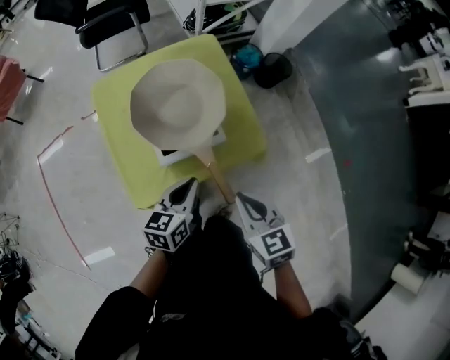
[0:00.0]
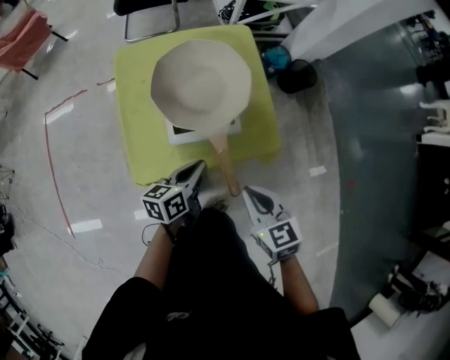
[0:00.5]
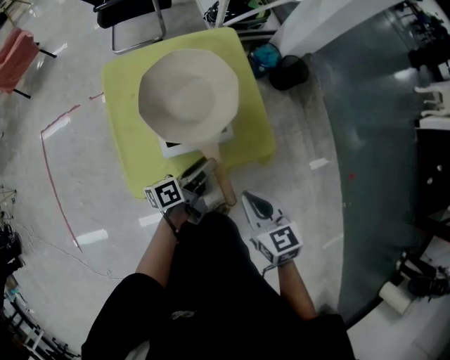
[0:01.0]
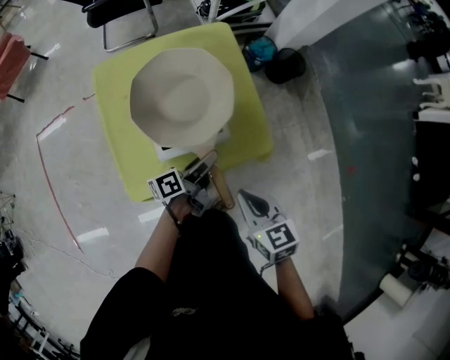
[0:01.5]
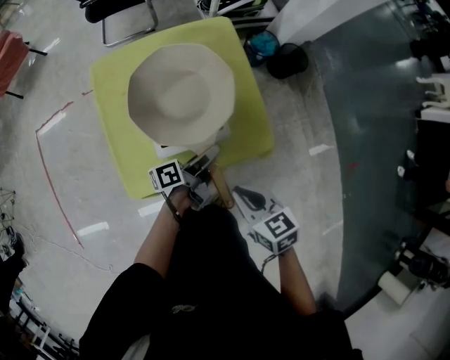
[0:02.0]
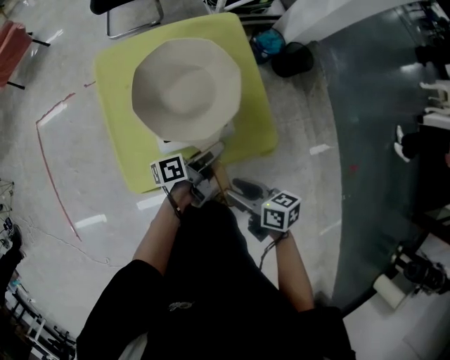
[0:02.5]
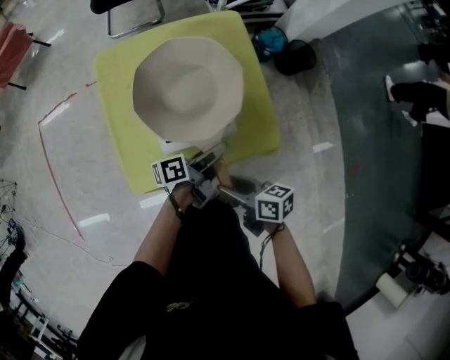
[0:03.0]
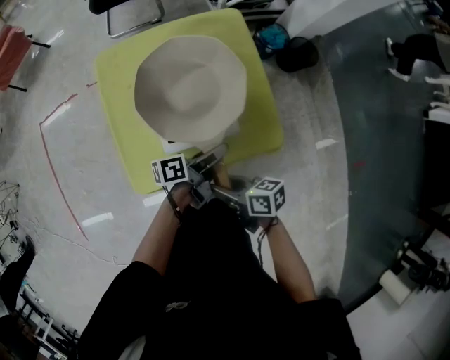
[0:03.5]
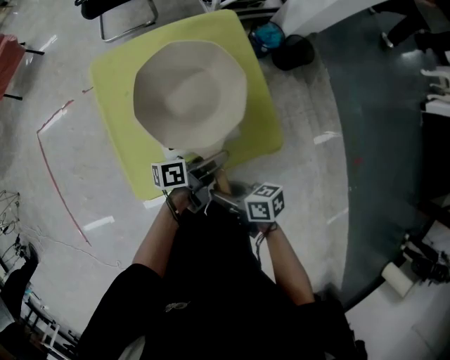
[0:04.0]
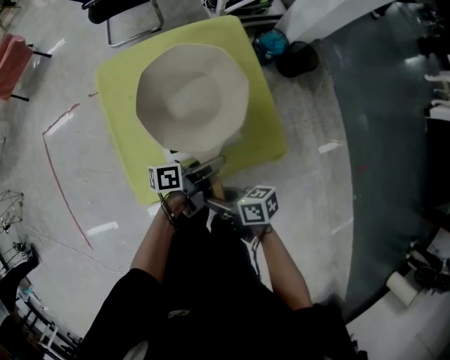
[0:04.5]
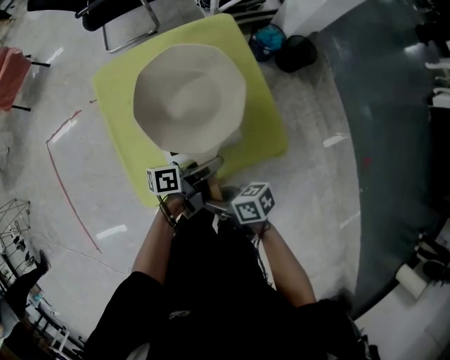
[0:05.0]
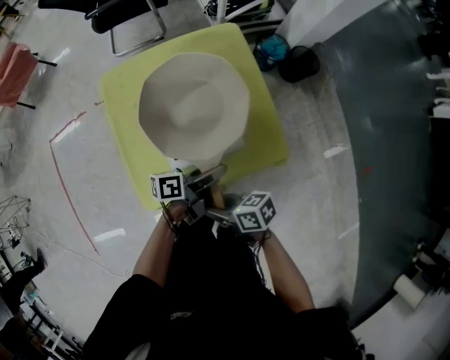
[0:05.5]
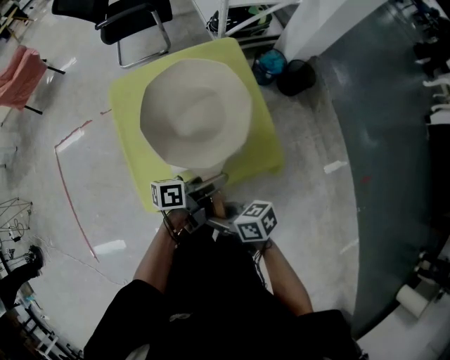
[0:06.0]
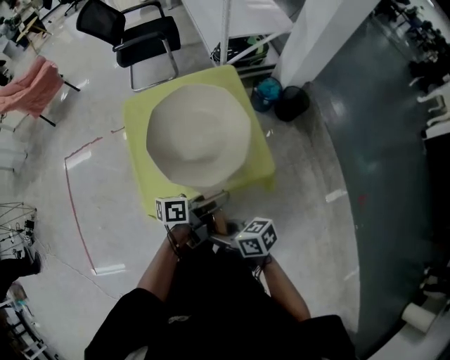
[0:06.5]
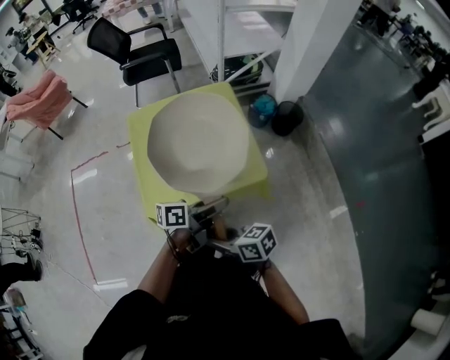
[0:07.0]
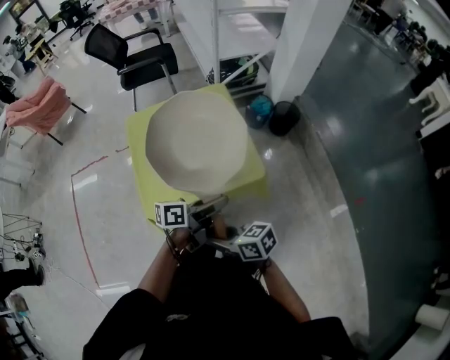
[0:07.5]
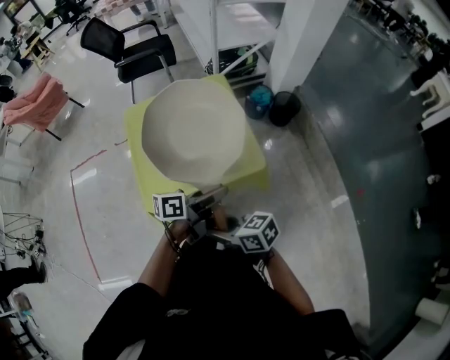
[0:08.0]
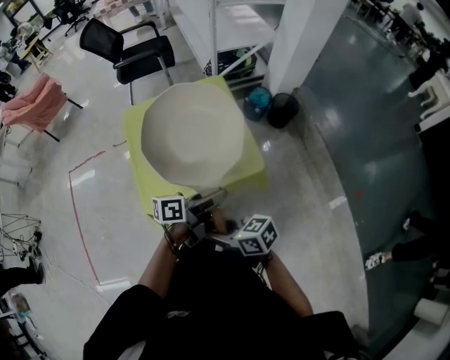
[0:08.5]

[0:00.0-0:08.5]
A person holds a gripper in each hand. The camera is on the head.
0:00.0 to 0:02.0: The right gripper heads downward, covering approximately 5 cm. Meanwhile the left gripper is displaced forward, downward and to the right by some 15 cm, twists roughly 50 degrees counterclockwise, seen from behind, and opens up.
0:02.0 to 0:04.0: The right gripper changes place by roughly 10 cm, changes its angle by roughly 40 degrees, and opens its fingers.
0:04.0 to 0:06.5: The right gripper changes place by roughly 15 cm; the left gripper changes place by about 15 cm.
0:06.5 to 0:08.5: The left gripper moves upward, roughly 5 cm. Meanwhile the right gripper changes place by some 5 cm.

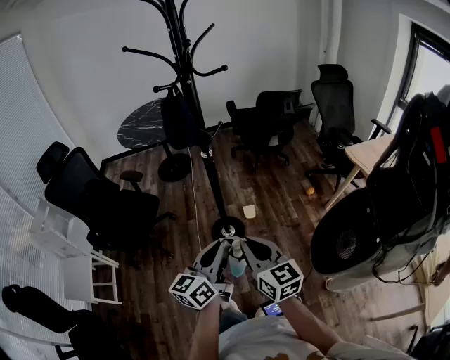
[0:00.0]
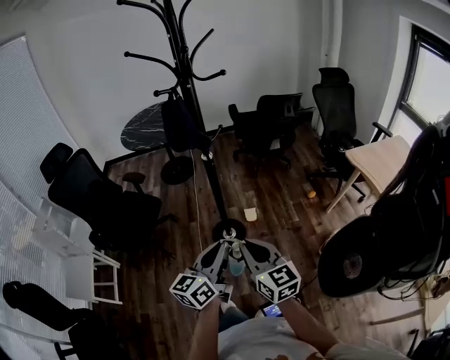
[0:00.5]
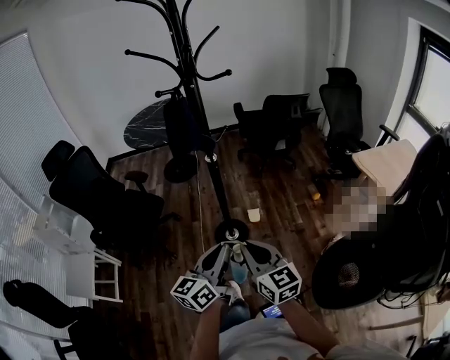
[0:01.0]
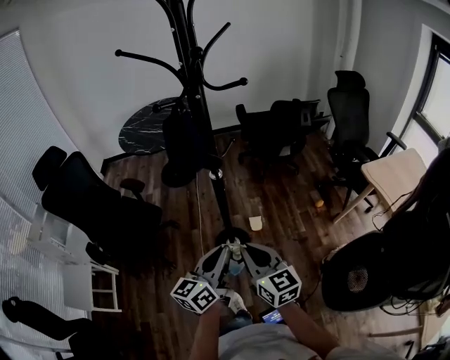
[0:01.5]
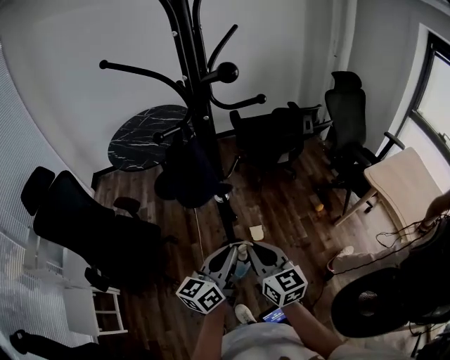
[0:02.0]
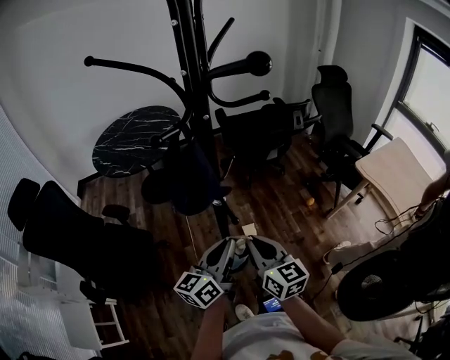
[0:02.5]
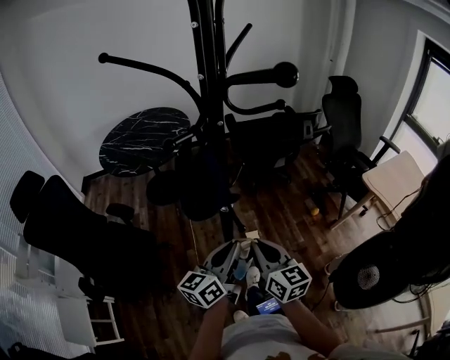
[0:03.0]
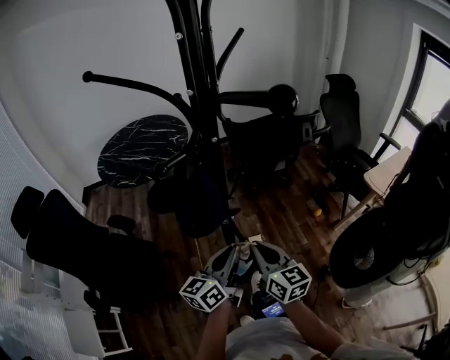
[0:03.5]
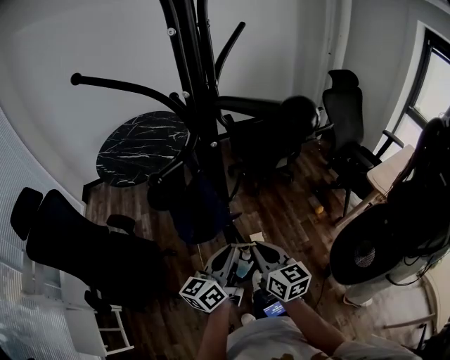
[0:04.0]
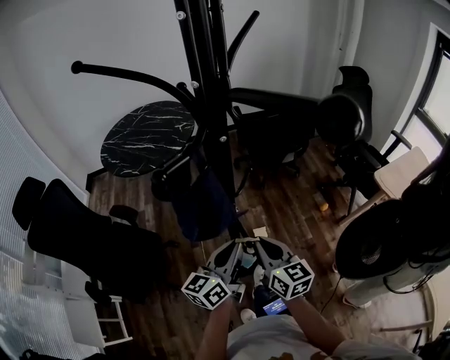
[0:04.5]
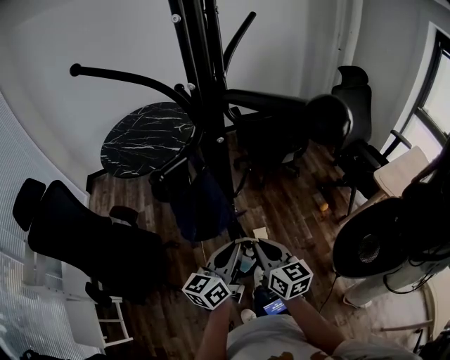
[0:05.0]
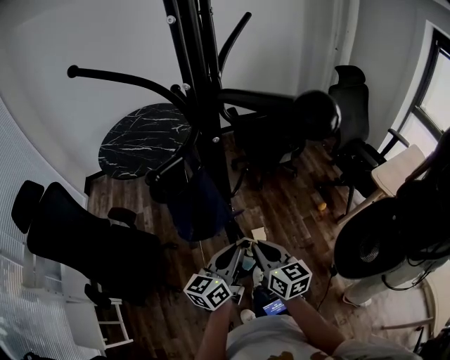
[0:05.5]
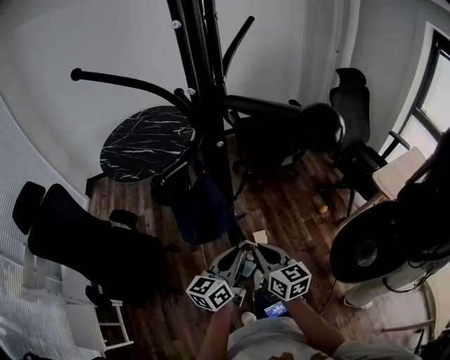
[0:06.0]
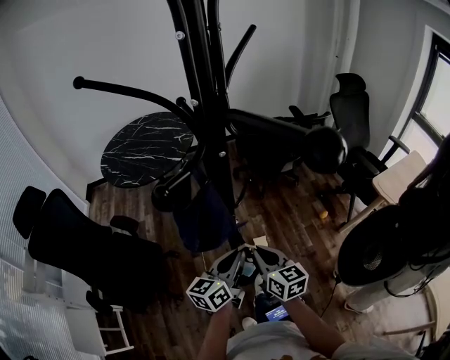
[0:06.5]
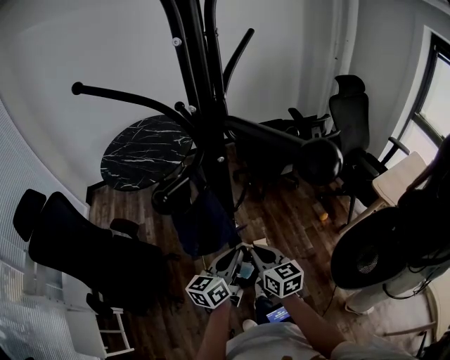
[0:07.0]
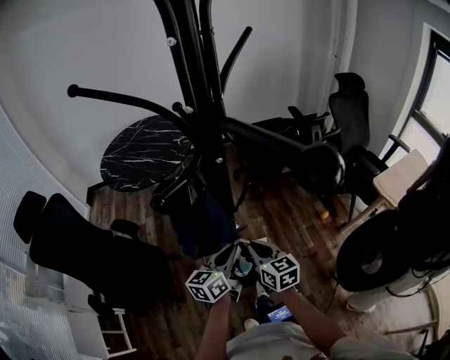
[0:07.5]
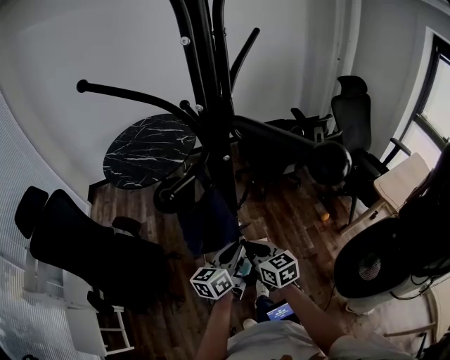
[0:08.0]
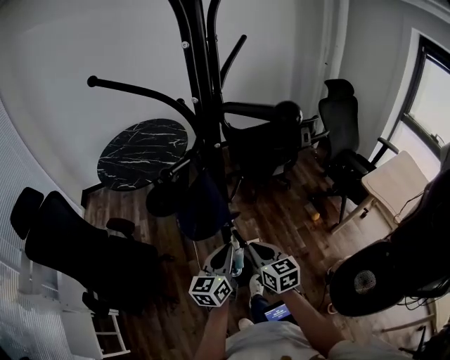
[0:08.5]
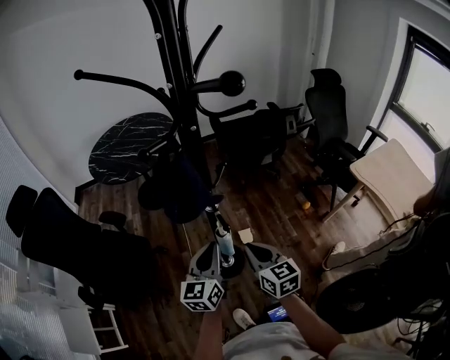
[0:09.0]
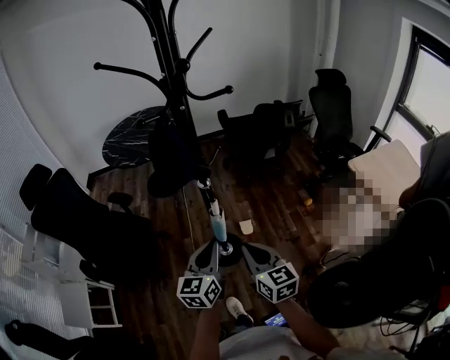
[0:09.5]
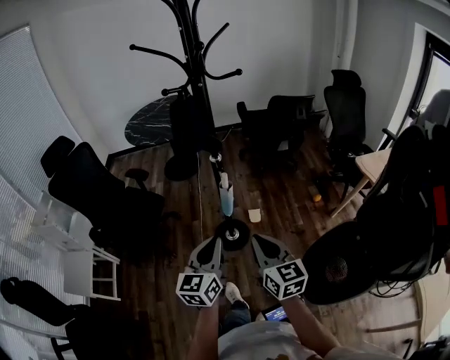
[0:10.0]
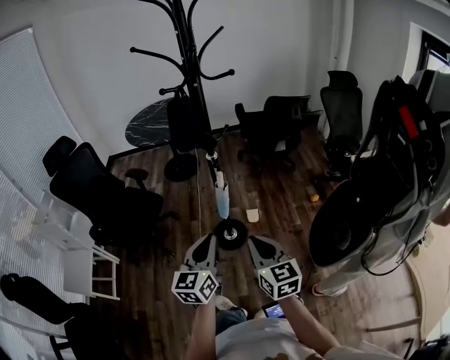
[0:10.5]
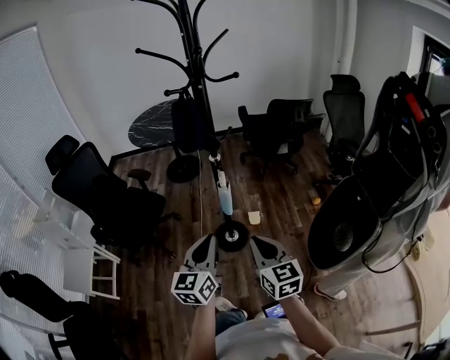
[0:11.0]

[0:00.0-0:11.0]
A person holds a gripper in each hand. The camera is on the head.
0:00.0 to 0:02.0: Both grippers travel together forward, approximately 25 cm.
0:02.0 to 0:03.5: The two grippers go roughly 10 cm forward.
0:03.5 to 0:05.5: The grippers make only small movements.
0:05.5 to 0:07.5: The two grippers go some 5 cm forward.
0:07.5 to 0:09.0: Both grippers move backward, approximately 10 cm. The left gripper changes its angle by roughly 20 degrees.
0:09.0 to 0:11.0: Both grippers travel together backward, about 25 cm.

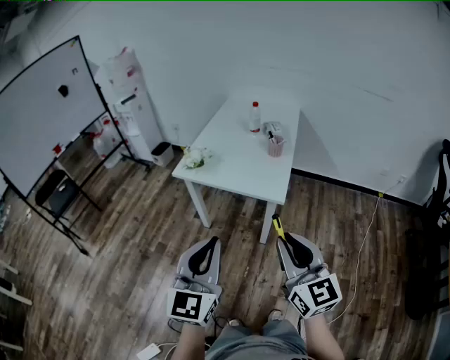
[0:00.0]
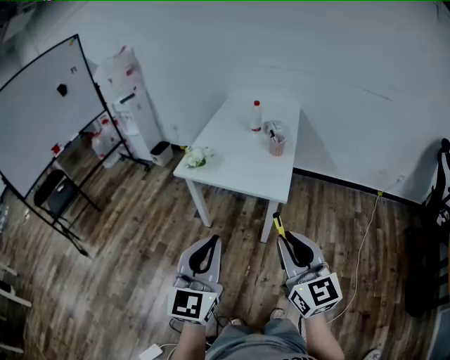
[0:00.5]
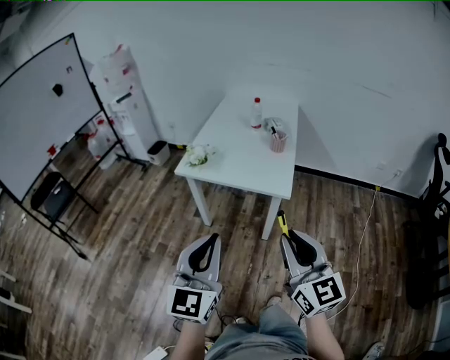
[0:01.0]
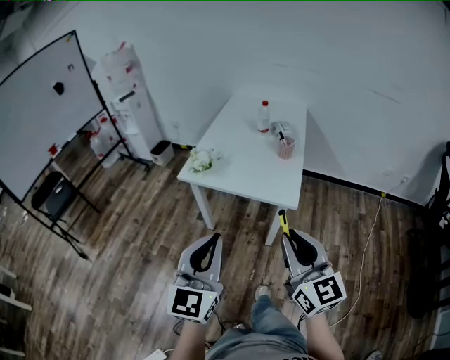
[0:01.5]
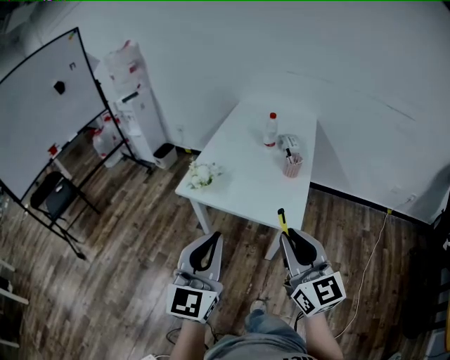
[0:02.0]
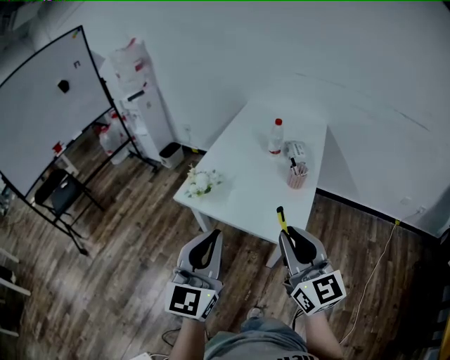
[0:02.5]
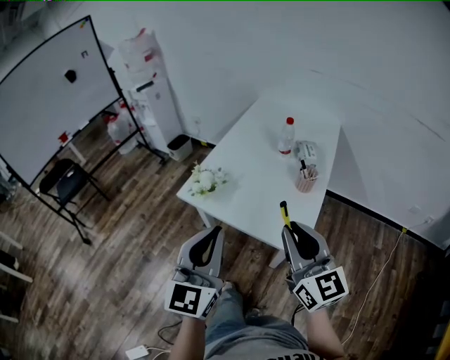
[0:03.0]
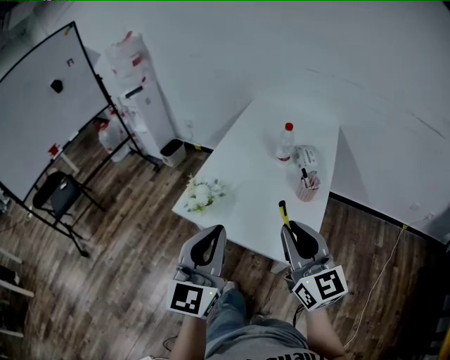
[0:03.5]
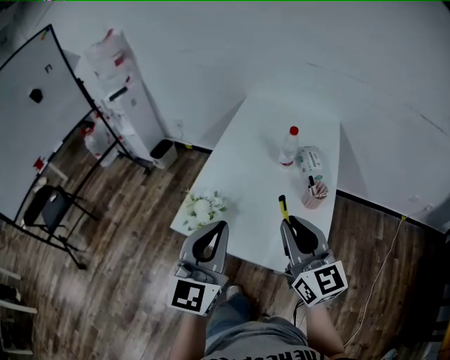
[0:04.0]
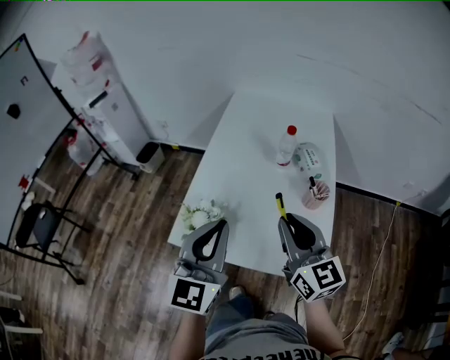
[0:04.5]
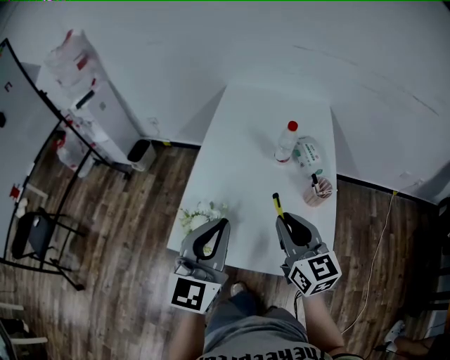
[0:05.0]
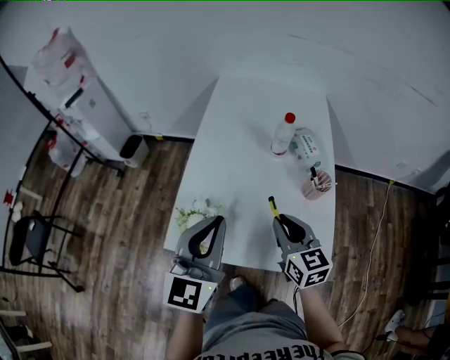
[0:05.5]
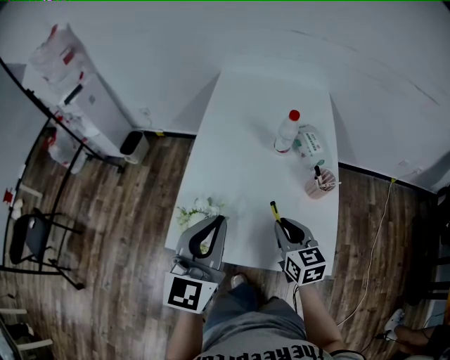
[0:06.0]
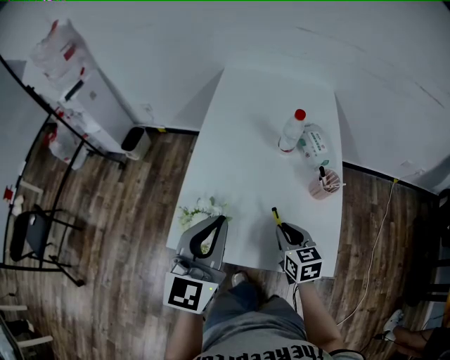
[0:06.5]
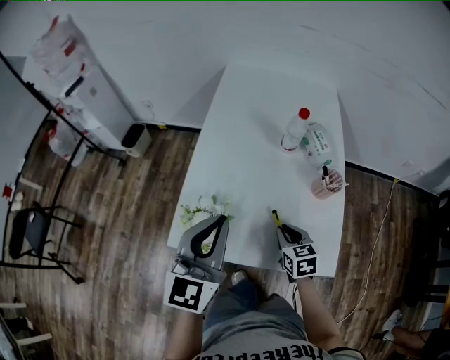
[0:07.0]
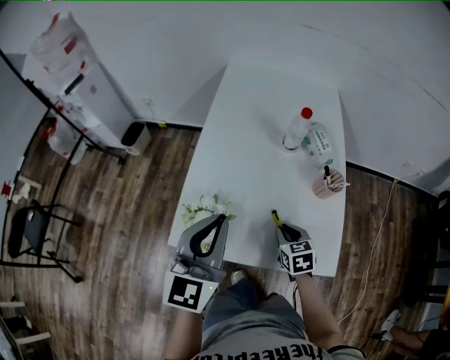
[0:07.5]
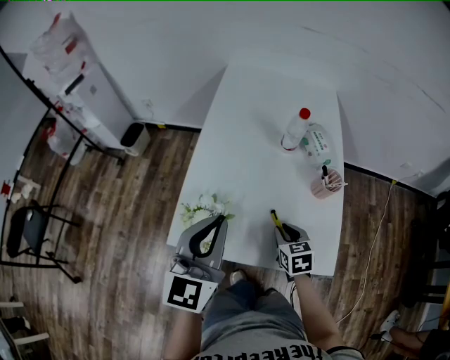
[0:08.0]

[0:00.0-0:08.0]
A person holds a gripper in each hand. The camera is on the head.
0:00.0 to 0:02.0: Both grippers travel together forward, some 15 cm.
0:02.0 to 0:04.0: The grippers both shift forward by approximately 25 cm.
0:04.0 to 0:06.0: The right gripper travels downward and forward by some 20 cm, and changes its angle by about 30 degrees. The left gripper heads forward, covering roughly 10 cm.
0:06.0 to 0:08.0: The right gripper moves downward, about 10 cm.
